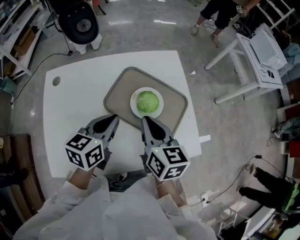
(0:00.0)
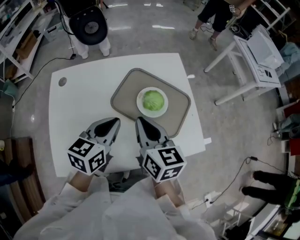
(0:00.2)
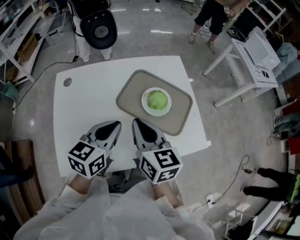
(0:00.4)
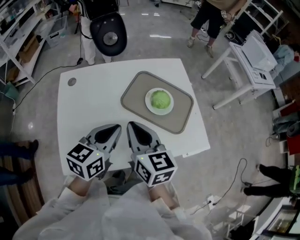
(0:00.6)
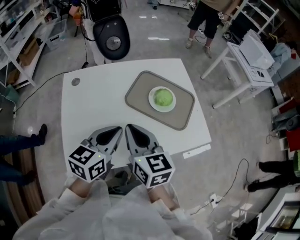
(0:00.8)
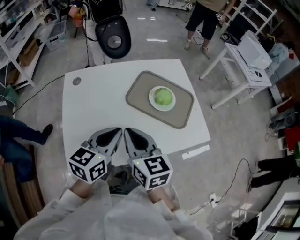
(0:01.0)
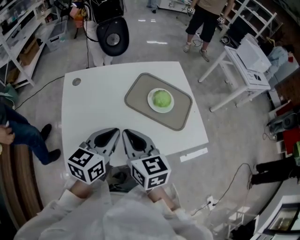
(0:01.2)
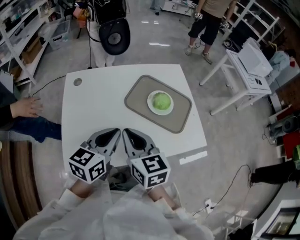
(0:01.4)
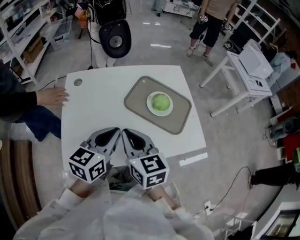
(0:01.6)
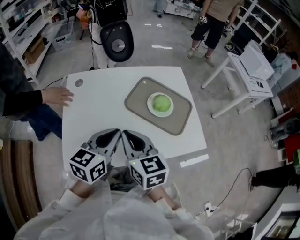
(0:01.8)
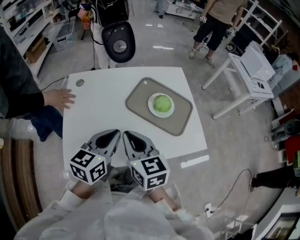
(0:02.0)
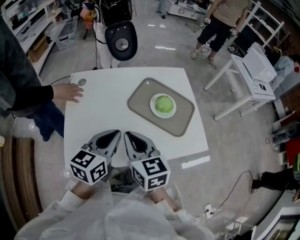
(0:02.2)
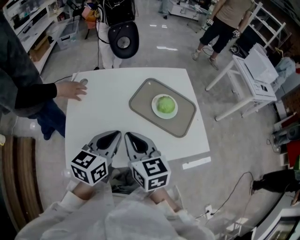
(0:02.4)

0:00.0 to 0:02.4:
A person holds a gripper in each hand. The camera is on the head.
0:00.0 to 0:01.2: The left gripper goes about 20 cm backward and to the left. Meanwhile the right gripper travels to the left and backward by approximately 25 cm.
0:01.2 to 0:02.4: There are only small adjustments of the grippers.

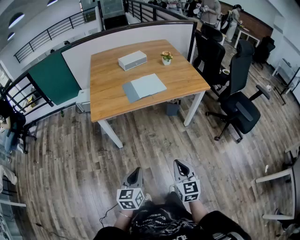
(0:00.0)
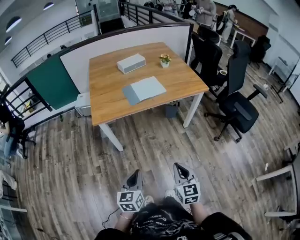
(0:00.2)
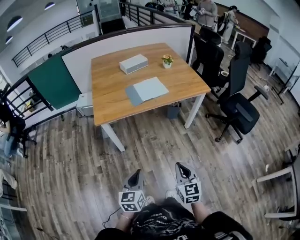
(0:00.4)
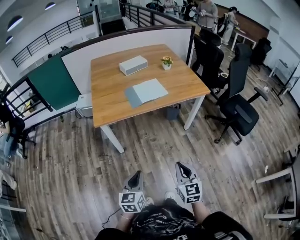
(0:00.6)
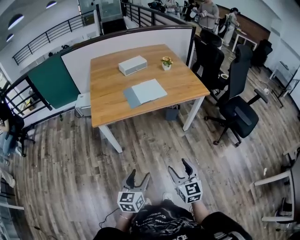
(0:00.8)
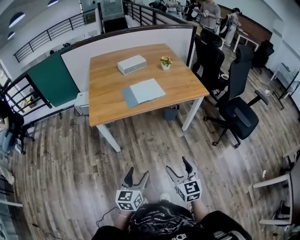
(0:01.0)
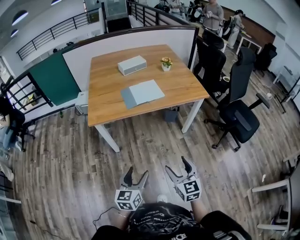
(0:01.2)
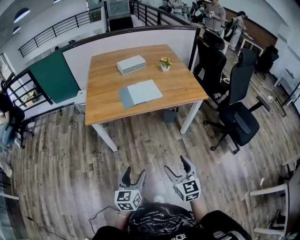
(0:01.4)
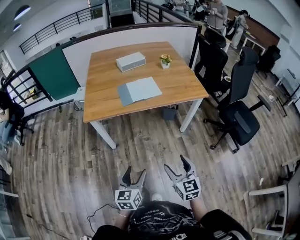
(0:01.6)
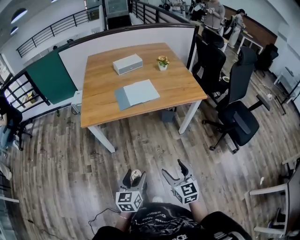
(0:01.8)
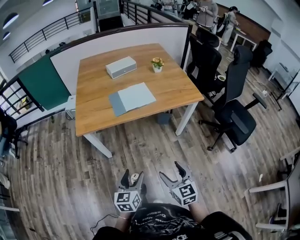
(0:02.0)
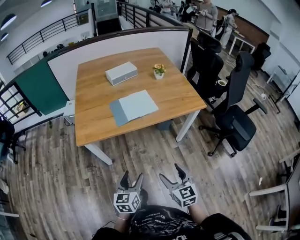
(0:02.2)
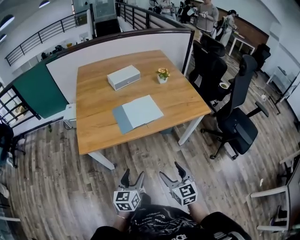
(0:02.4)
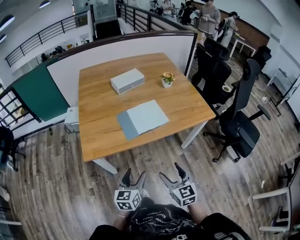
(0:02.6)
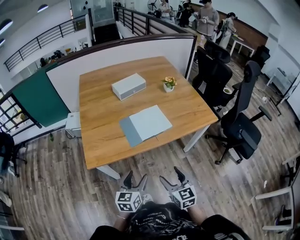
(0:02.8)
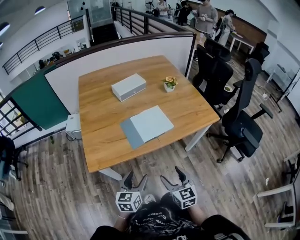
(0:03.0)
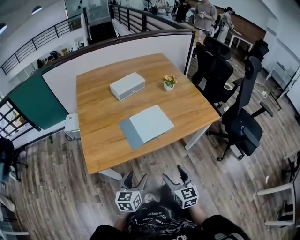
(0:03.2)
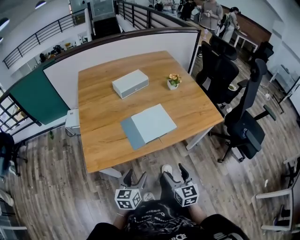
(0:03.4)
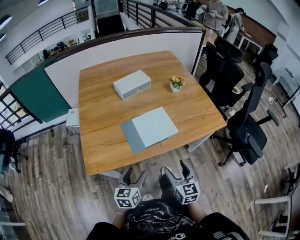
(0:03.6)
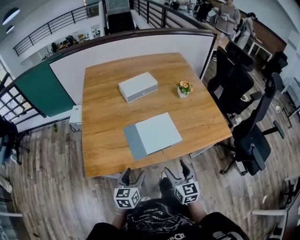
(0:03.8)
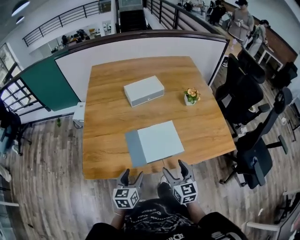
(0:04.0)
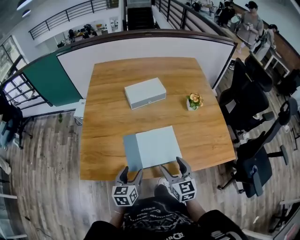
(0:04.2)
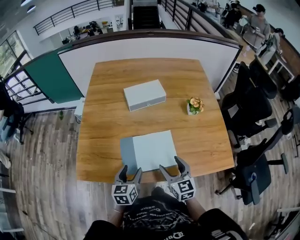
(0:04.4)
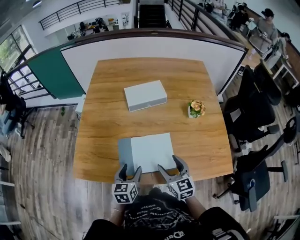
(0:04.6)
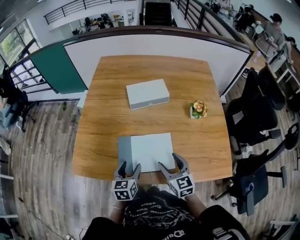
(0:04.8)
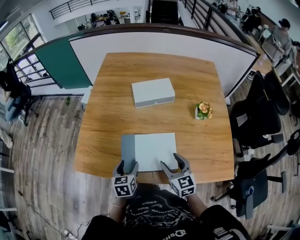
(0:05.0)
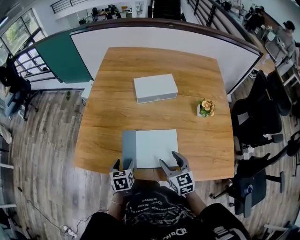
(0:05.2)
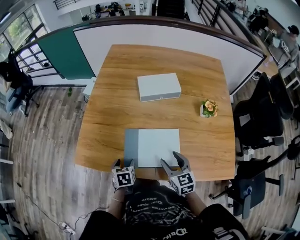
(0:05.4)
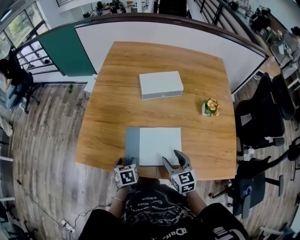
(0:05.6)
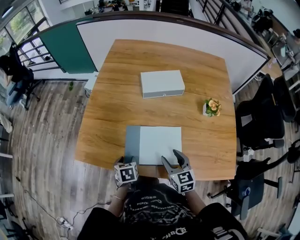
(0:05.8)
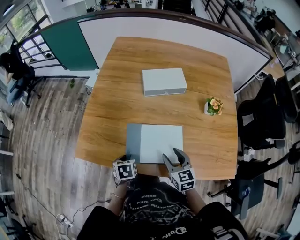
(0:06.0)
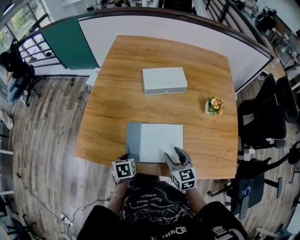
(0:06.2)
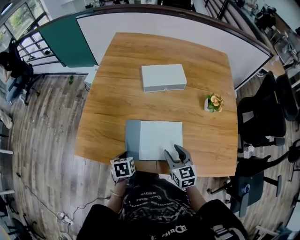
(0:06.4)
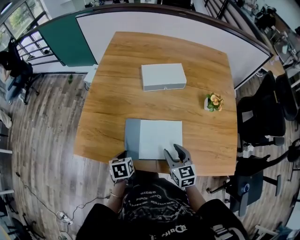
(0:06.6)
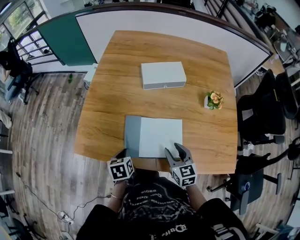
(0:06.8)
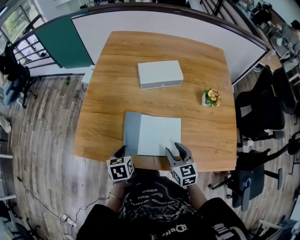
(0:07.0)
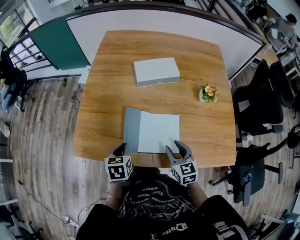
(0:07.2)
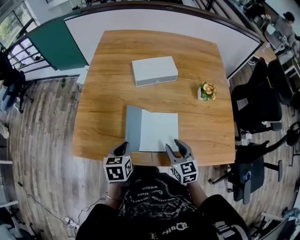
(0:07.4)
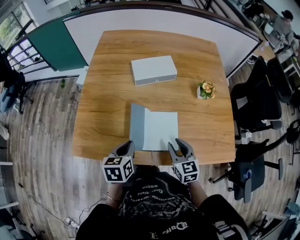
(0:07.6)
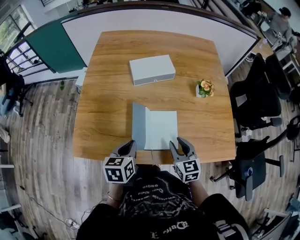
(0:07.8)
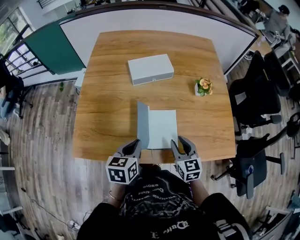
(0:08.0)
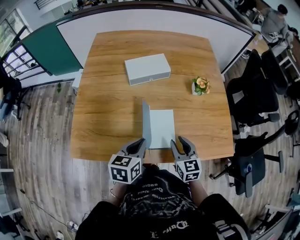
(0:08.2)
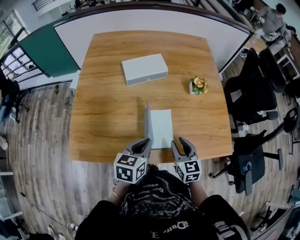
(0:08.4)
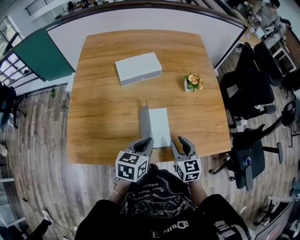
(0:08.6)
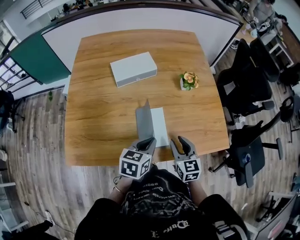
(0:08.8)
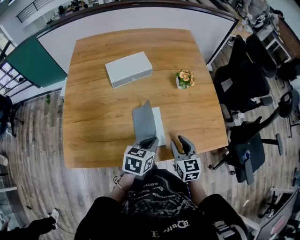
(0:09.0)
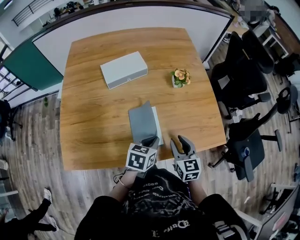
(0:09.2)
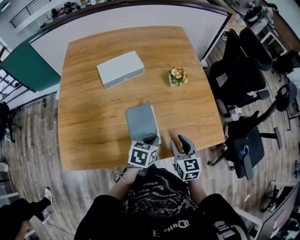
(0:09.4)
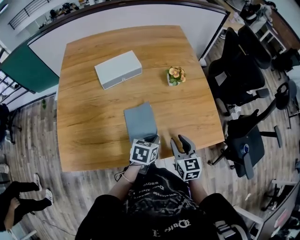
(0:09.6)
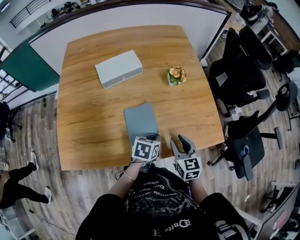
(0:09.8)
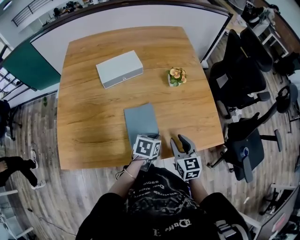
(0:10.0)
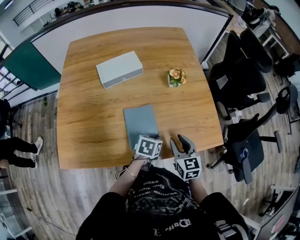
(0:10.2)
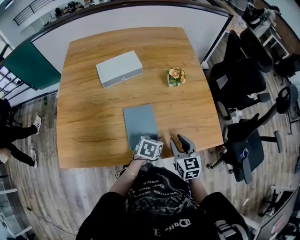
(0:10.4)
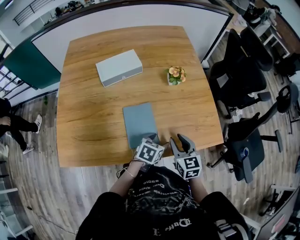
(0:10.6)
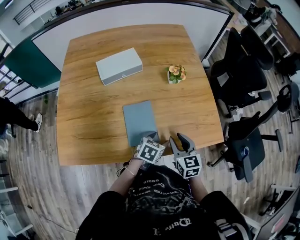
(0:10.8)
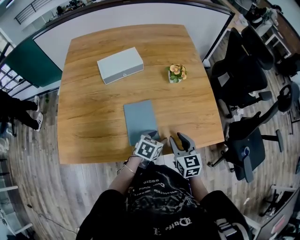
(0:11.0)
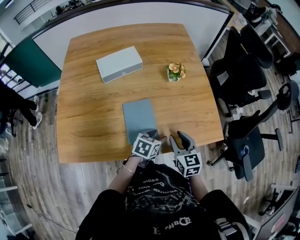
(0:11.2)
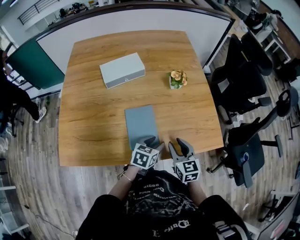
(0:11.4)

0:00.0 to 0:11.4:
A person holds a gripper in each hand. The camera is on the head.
0:00.0 to 0:01.4: The left gripper heads to the right, covering about 5 cm, and opens, while the right gripper changes place by about 5 cm, and opens its fingers.
0:01.4 to 0:02.8: The right gripper goes some 25 cm forward and to the left. Meanwhile the left gripper is displaced forward by approximately 30 cm.
0:02.8 to 0:04.2: Both grippers move forward, about 25 cm.
0:04.2 to 0:05.6: The left gripper heads downward, covering some 10 cm, and swivels some 40 degrees; the right gripper is displaced forward by some 5 cm.
0:05.6 to 0:07.2: The left gripper shifts approximately 10 cm upward, and closes its fingers.
0:07.2 to 0:08.6: The right gripper shifts by approximately 5 cm. Meanwhile the left gripper shifts by approximately 15 cm, and changes its angle by some 30 degrees.
0:08.6 to 0:10.0: The left gripper heads downward and to the right, covering approximately 15 cm, and swivels roughly 20 degrees, while the right gripper moves to the right, about 5 cm.
0:10.0 to 0:11.4: The left gripper opens its fingers.

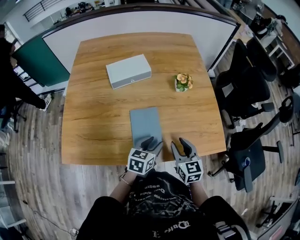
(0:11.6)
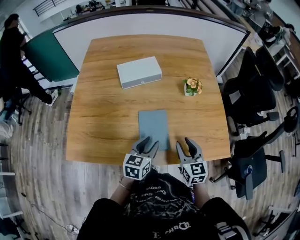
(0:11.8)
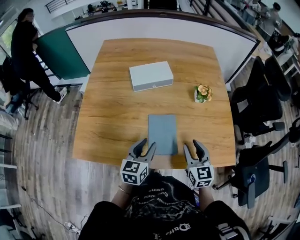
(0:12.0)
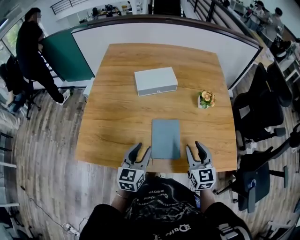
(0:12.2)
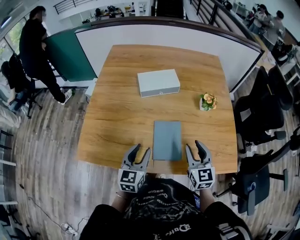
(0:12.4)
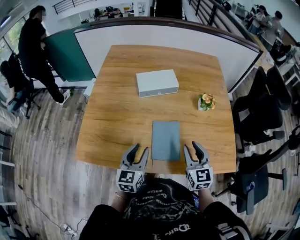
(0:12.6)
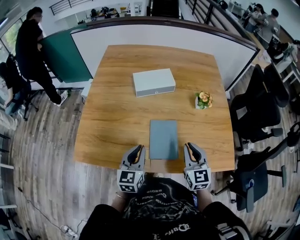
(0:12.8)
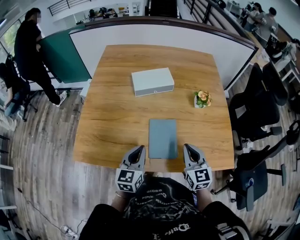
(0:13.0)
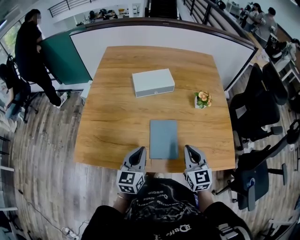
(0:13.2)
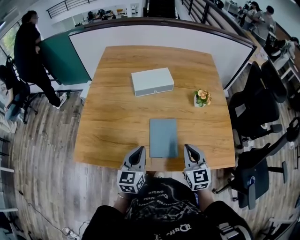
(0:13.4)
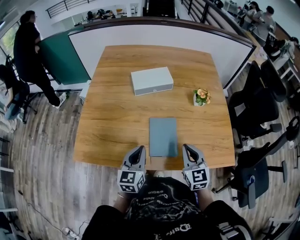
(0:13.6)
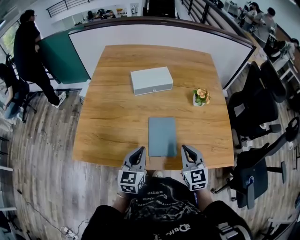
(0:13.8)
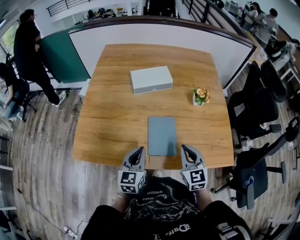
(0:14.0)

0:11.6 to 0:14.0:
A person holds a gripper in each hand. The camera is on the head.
0:11.6 to 0:12.8: The right gripper goes roughly 5 cm upward. The left gripper heads to the left and upward, covering approximately 20 cm, changes its angle by roughly 30 degrees, and closes its fingers.
0:12.8 to 0:14.0: The grippers make only small movements.

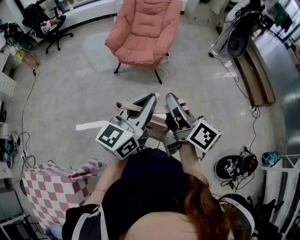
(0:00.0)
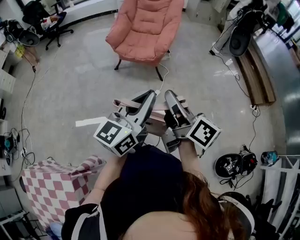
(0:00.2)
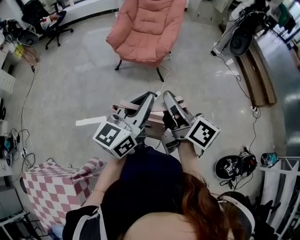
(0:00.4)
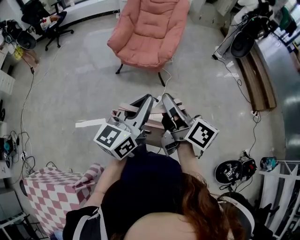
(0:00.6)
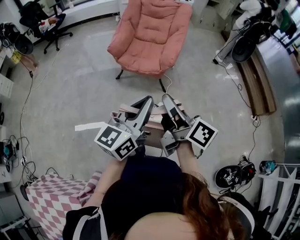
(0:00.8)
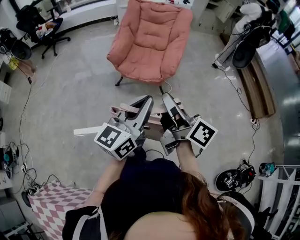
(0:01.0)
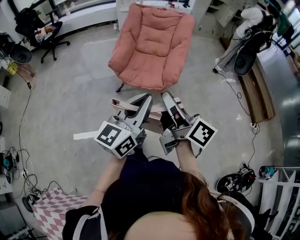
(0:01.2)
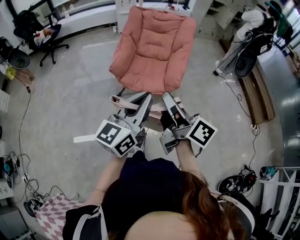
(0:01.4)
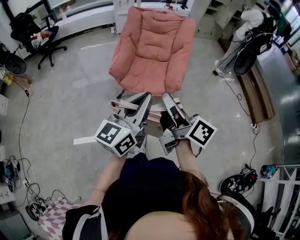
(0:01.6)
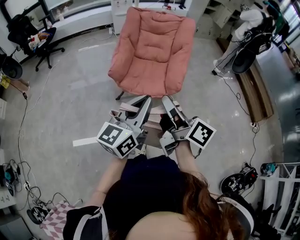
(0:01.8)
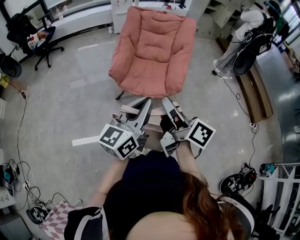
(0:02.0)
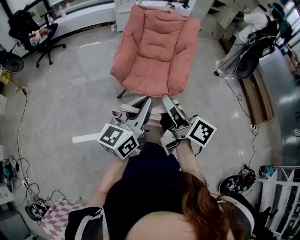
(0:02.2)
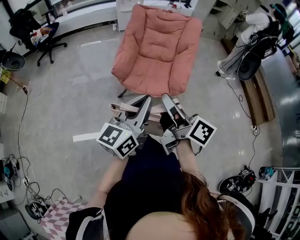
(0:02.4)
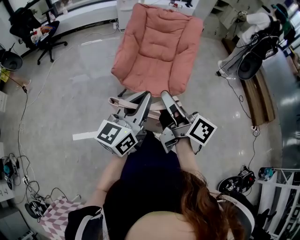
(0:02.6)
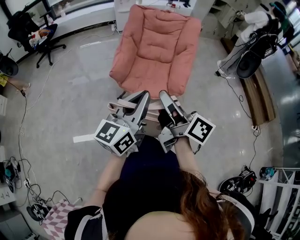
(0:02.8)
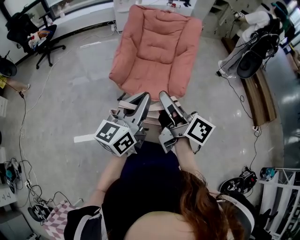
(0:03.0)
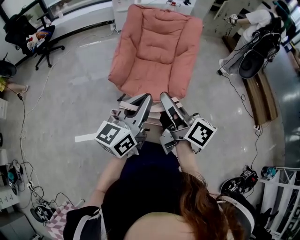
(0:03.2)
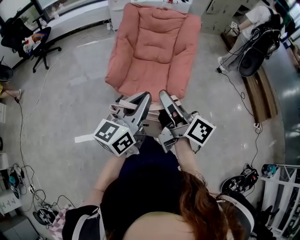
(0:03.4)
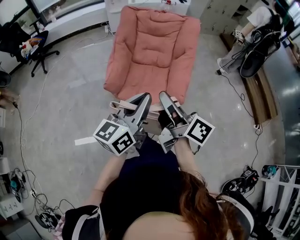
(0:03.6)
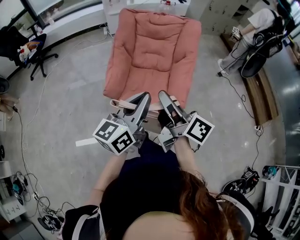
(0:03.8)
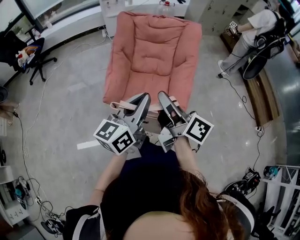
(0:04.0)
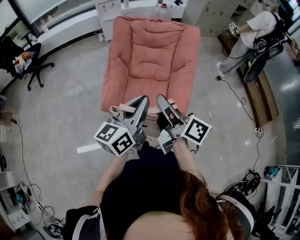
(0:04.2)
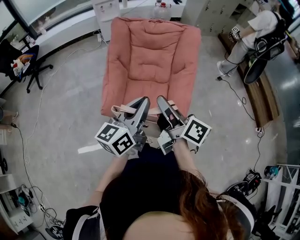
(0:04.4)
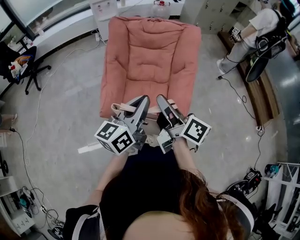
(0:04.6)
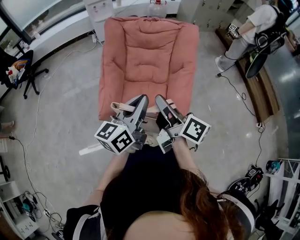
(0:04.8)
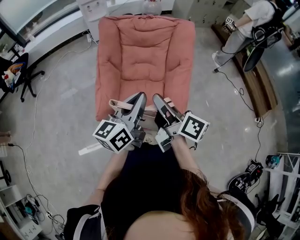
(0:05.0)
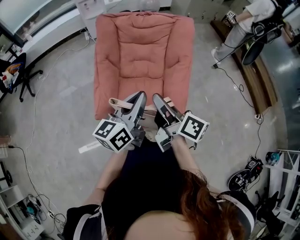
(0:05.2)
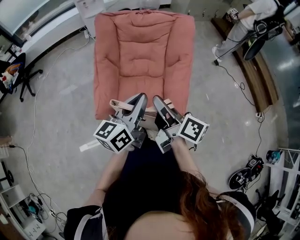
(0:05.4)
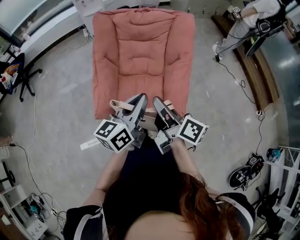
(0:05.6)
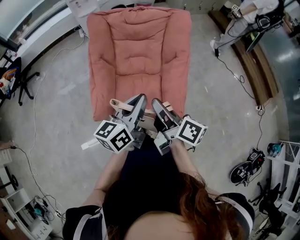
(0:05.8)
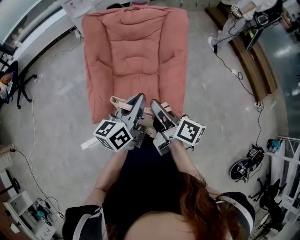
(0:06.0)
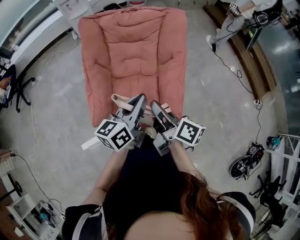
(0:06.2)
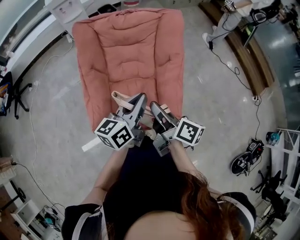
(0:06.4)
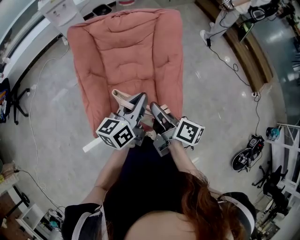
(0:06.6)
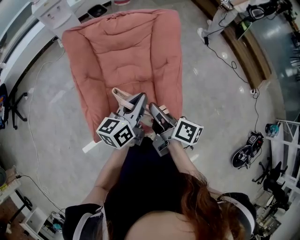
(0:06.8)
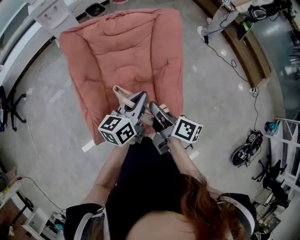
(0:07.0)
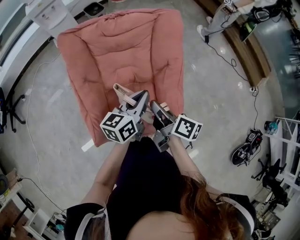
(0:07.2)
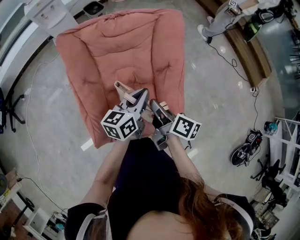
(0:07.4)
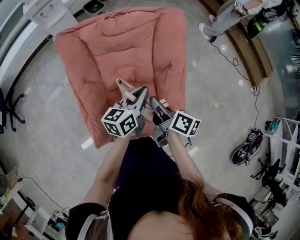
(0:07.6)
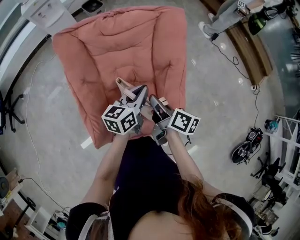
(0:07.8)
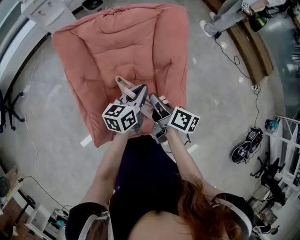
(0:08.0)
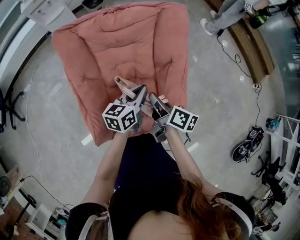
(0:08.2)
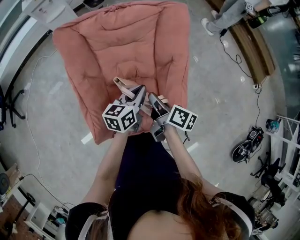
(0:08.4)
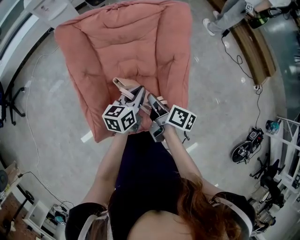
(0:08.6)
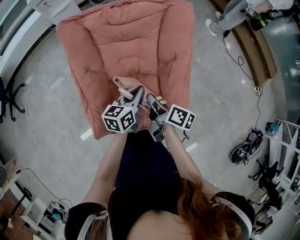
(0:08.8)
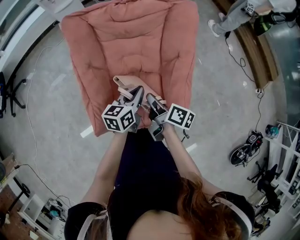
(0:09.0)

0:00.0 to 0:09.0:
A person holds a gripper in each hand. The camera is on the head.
0:00.0 to 0:01.6: Both grippers move forward and to the left, roughly 35 cm.
0:01.6 to 0:03.0: The two grippers go about 10 cm forward.
0:03.0 to 0:04.4: The grippers both shift forward by some 30 cm.
0:04.4 to 0:06.0: The right gripper travels downward and forward by approximately 10 cm. The left gripper shifts some 10 cm forward and downward.
0:06.0 to 0:07.6: The grippers both shift forward and downward by approximately 20 cm.
0:07.6 to 0:09.0: Both grippers move downward, roughly 5 cm.
